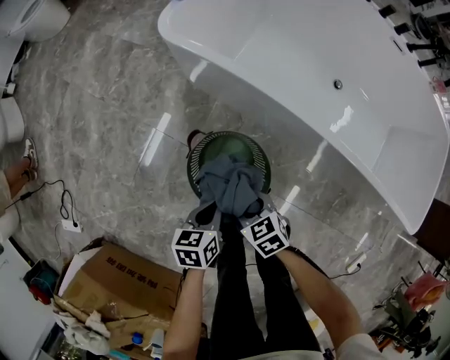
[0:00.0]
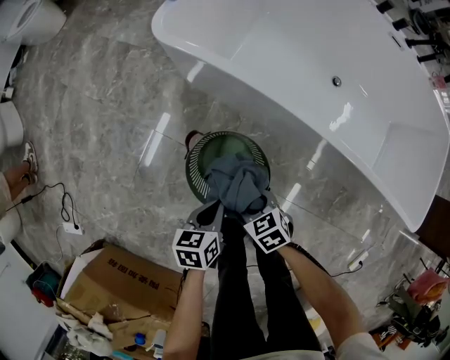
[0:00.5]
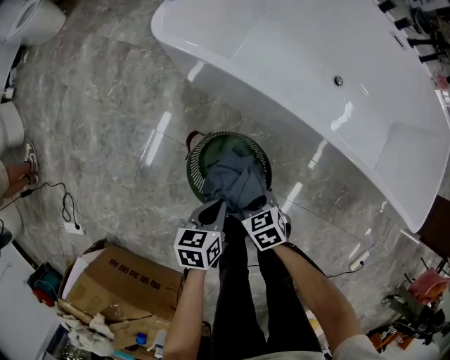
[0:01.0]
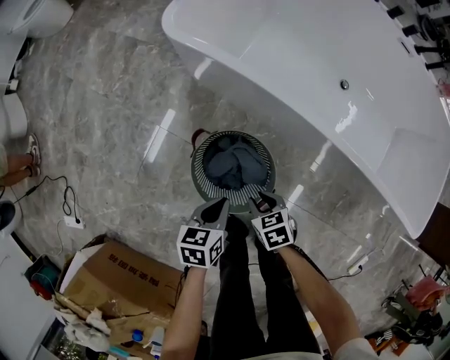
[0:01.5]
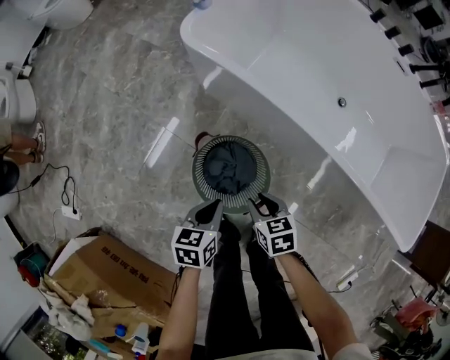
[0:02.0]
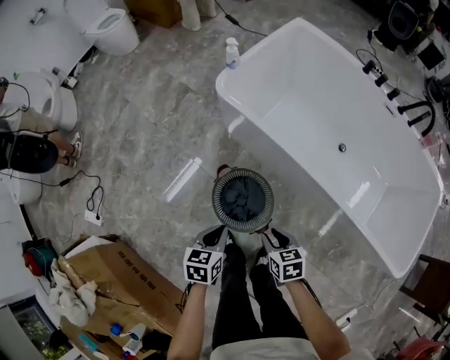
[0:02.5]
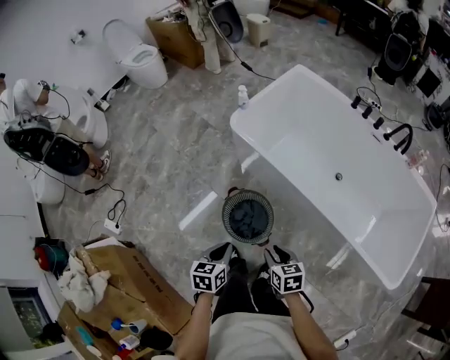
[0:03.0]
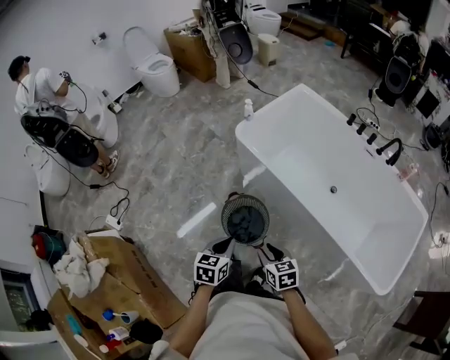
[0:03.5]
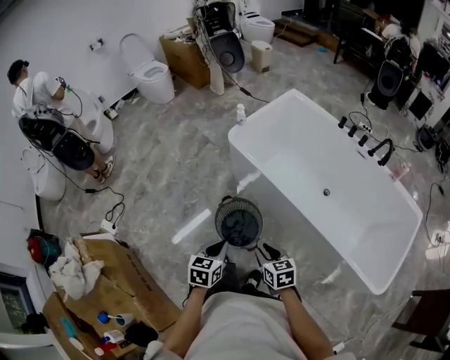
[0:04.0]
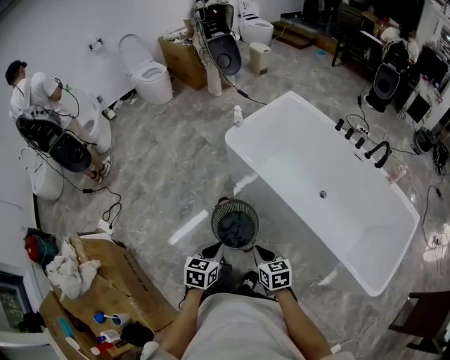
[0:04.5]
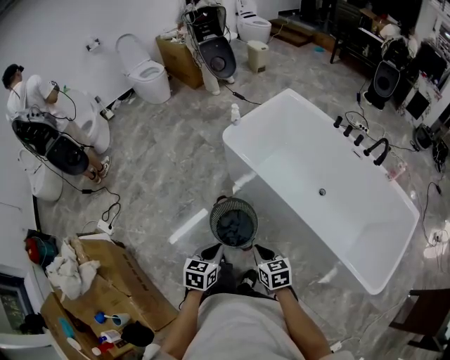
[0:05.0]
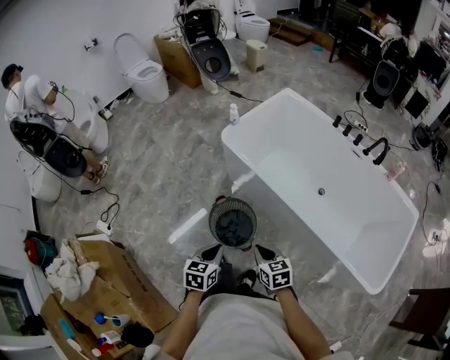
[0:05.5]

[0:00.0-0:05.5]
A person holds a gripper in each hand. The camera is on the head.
0:00.0 to 0:02.0: The right gripper heads to the right, covering roughly 5 cm.
0:02.0 to 0:03.5: Both grippers travel together upward and backward, some 35 cm. The right gripper turns by about 20 degrees.
0:03.5 to 0:05.5: The grippers move only a little.

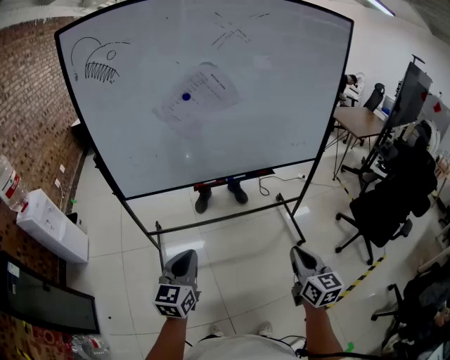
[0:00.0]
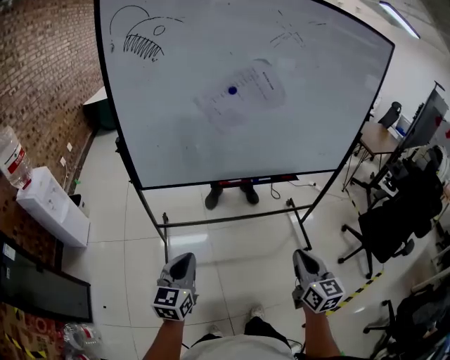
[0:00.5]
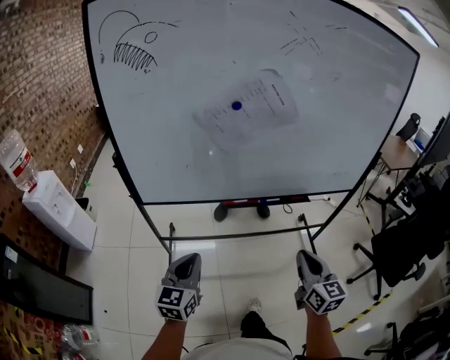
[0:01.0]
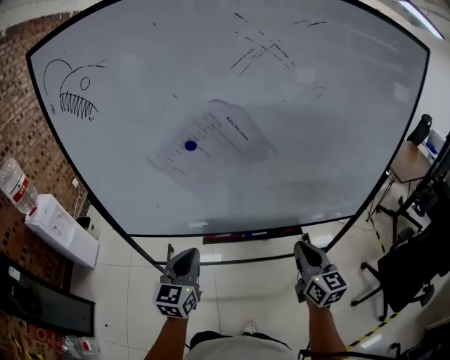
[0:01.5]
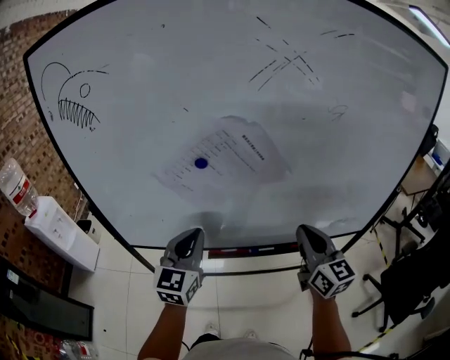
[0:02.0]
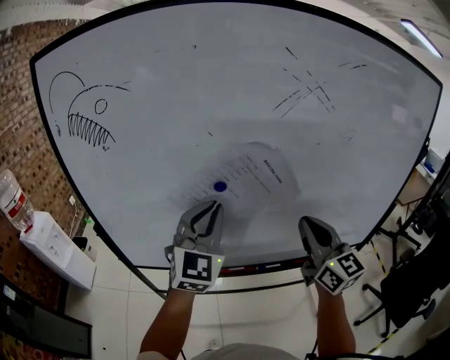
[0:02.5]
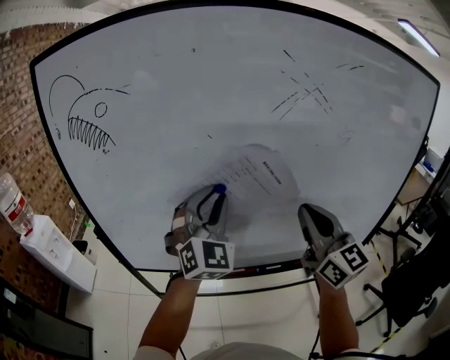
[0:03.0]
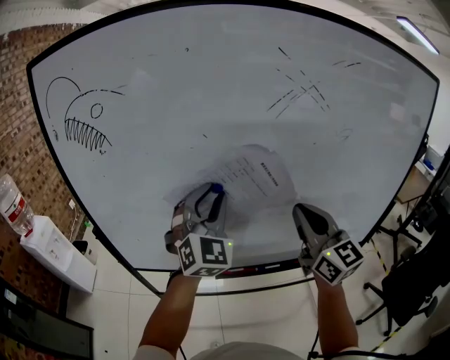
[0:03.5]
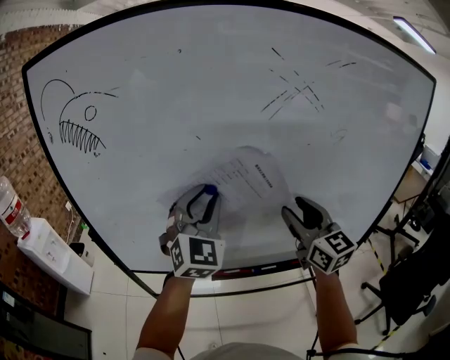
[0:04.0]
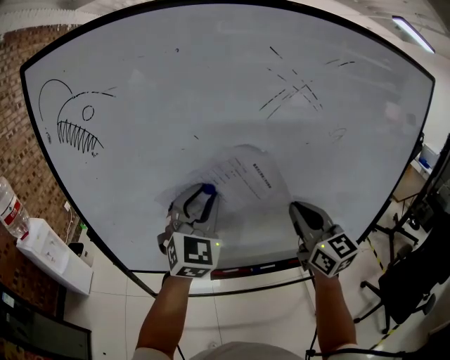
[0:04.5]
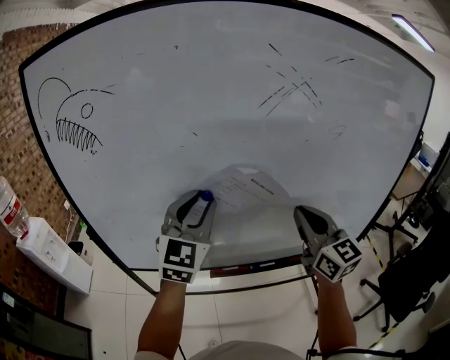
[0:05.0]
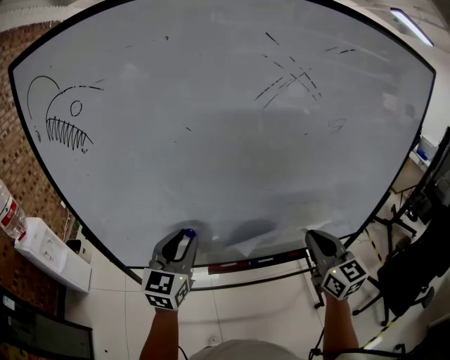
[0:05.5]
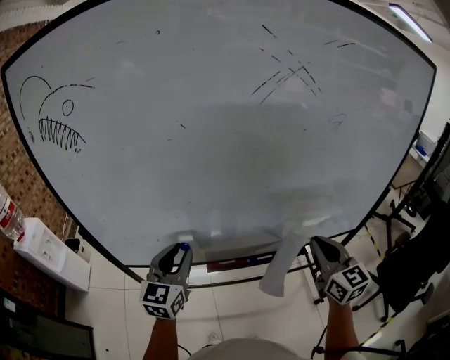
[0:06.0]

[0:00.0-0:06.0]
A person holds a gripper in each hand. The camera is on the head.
0:00.0 to 0:02.0: The grippers both shift forward by some 40 cm. The right gripper turns by some 20 degrees.
0:02.0 to 0:04.0: The two grippers go approximately 15 cm upward and forward. The left gripper rotates roughly 30 degrees, and opens its fingers. Meanwhile the right gripper opens up.
0:04.0 to 0:06.0: The left gripper heads downward and to the left, covering roughly 20 cm, and swivels approximately 40 degrees. The right gripper is displaced downward, backward and to the right by about 15 cm, and closes.

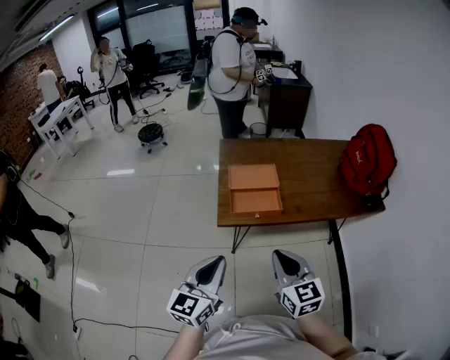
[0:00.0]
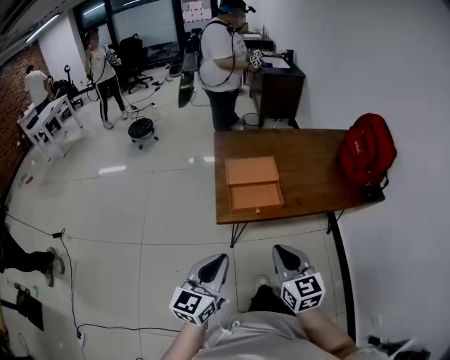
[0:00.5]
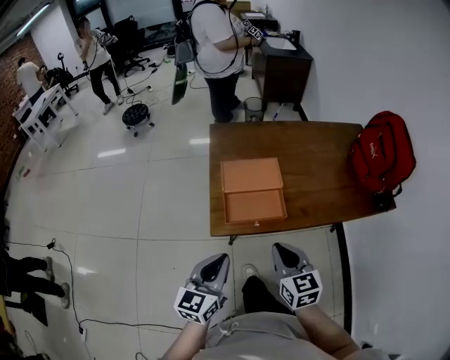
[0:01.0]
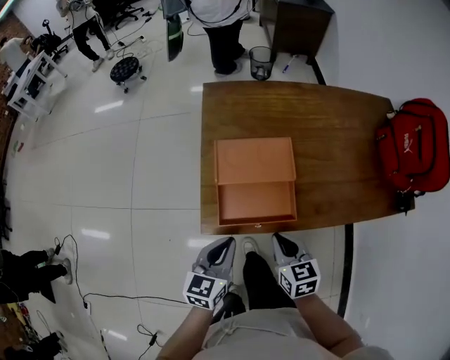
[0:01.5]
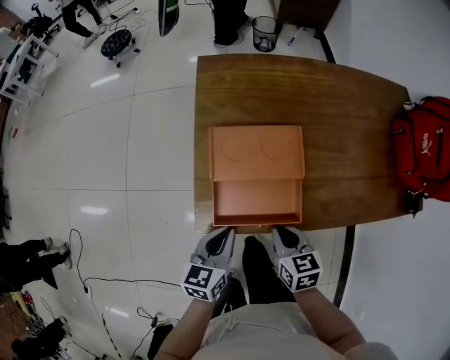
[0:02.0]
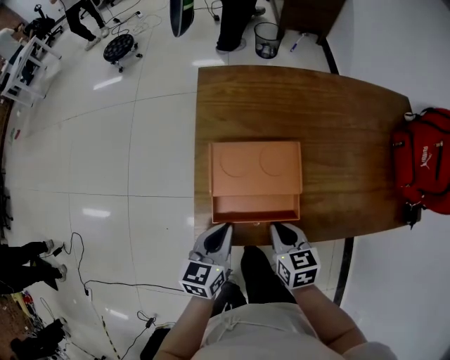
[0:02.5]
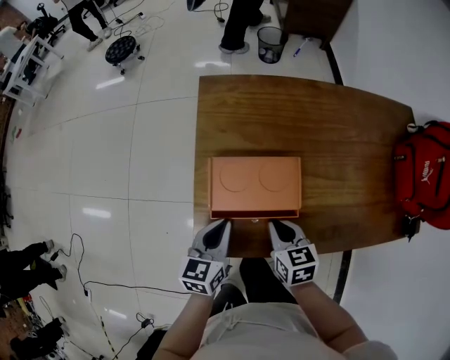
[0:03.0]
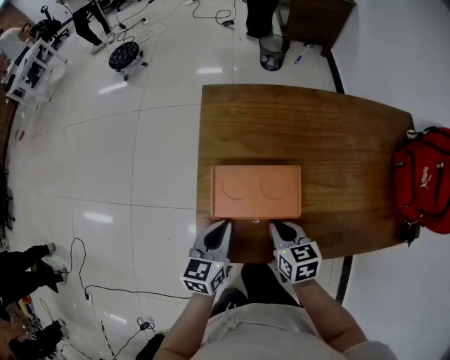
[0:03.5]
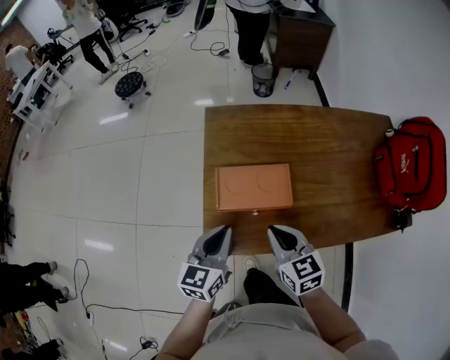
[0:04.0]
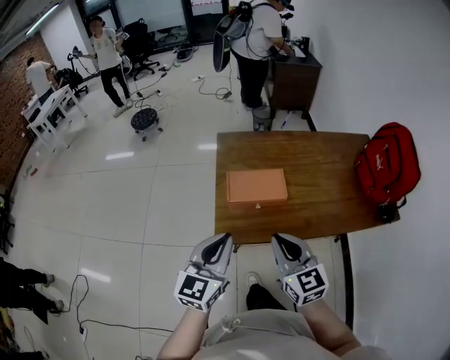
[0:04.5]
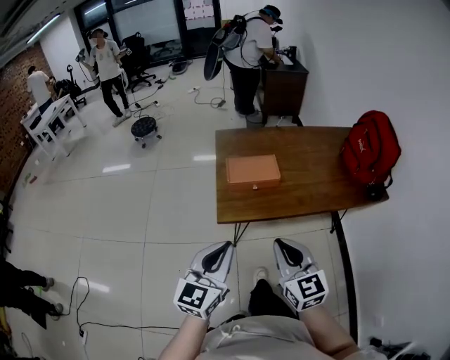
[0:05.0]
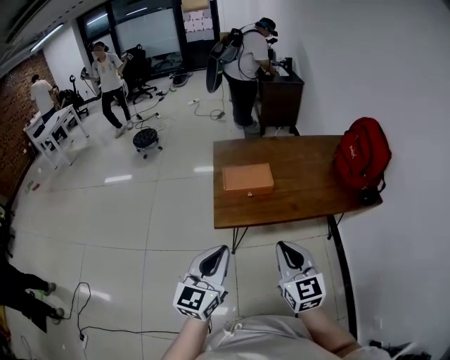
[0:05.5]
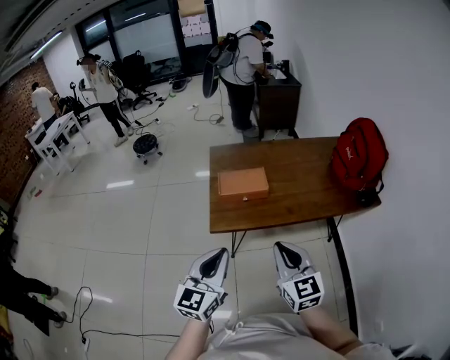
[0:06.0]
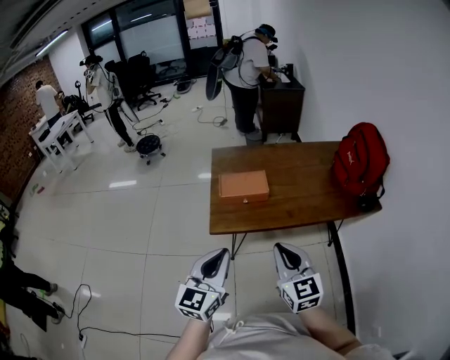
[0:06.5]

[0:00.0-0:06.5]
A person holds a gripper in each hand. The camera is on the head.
0:00.0 to 0:02.0: The left gripper goes about 35 cm forward and downward, and turns by some 30 degrees; the right gripper shifts about 35 cm downward and forward, and swivels approximately 30 degrees.
0:02.0 to 0:04.5: Both grippers move upward, about 25 cm. The left gripper rotates some 30 degrees. Meanwhile the right gripper turns by roughly 40 degrees.
0:04.5 to 0:06.5: The left gripper goes approximately 15 cm backward; the right gripper moves backward and to the right, about 15 cm.

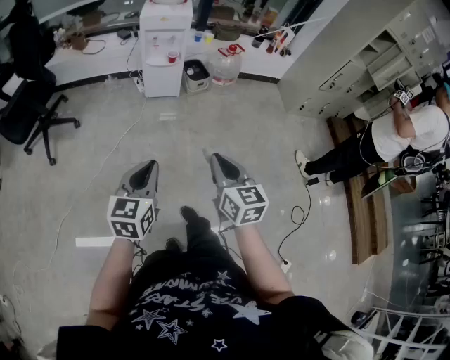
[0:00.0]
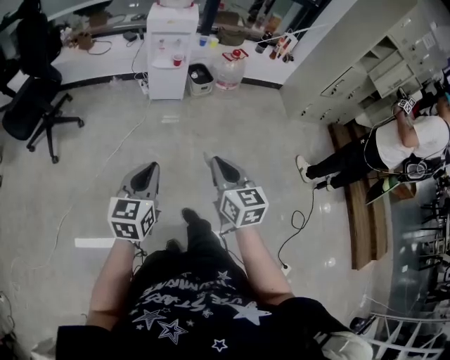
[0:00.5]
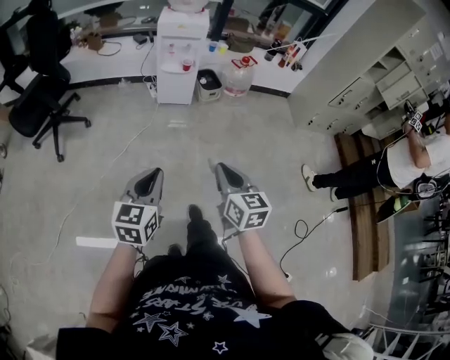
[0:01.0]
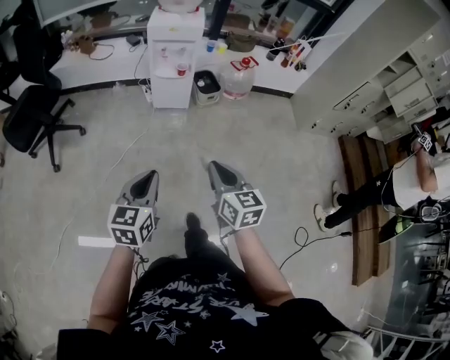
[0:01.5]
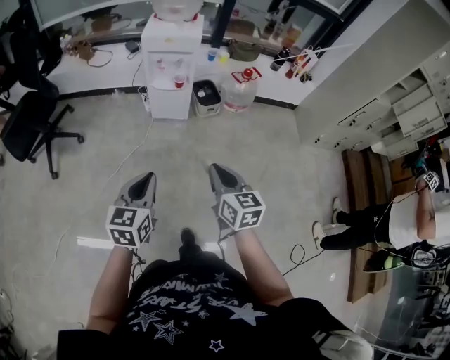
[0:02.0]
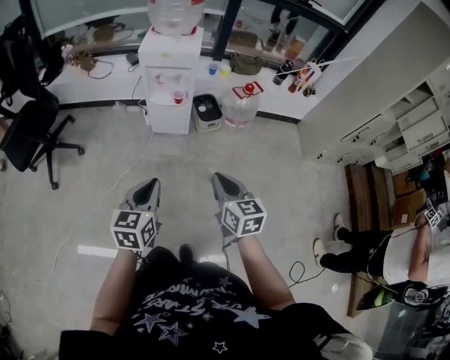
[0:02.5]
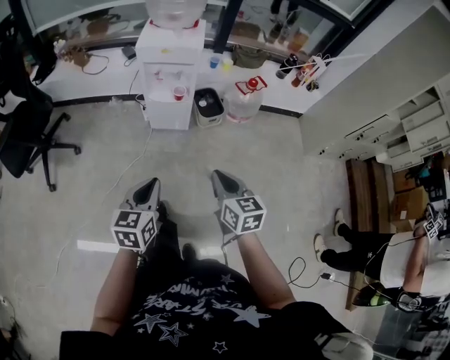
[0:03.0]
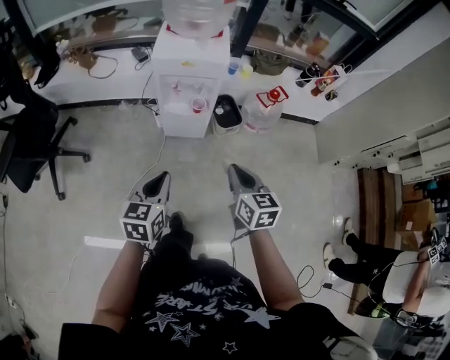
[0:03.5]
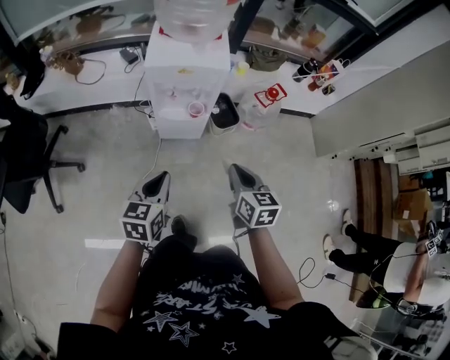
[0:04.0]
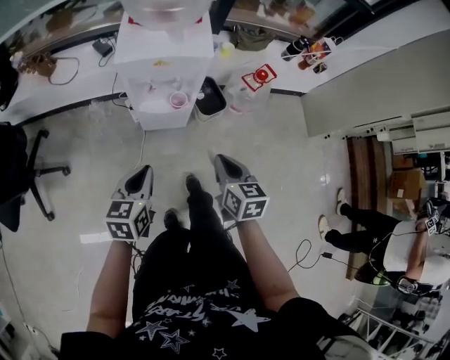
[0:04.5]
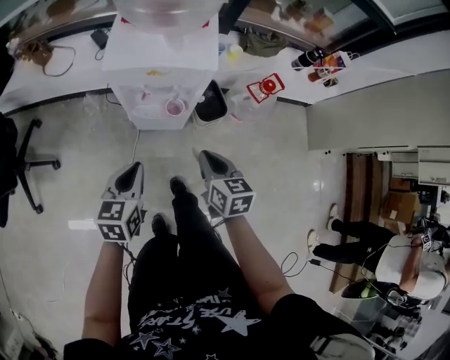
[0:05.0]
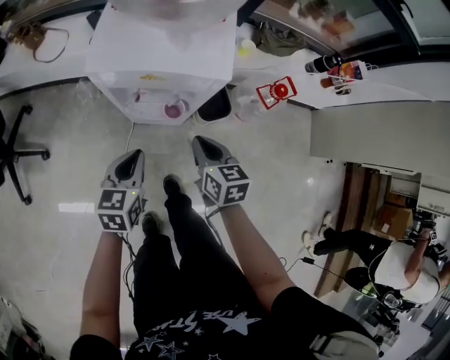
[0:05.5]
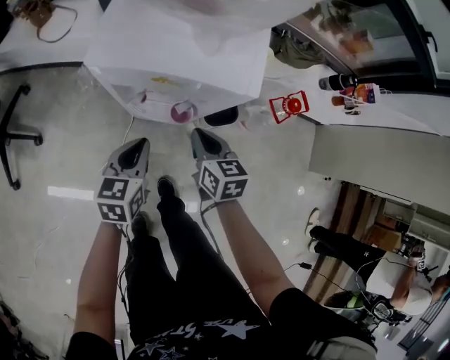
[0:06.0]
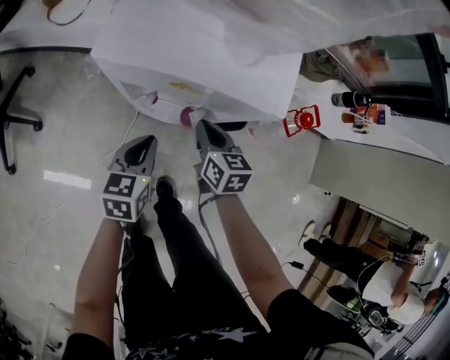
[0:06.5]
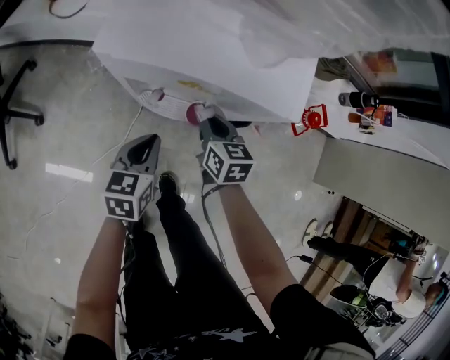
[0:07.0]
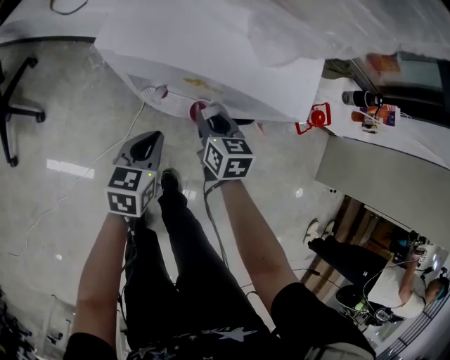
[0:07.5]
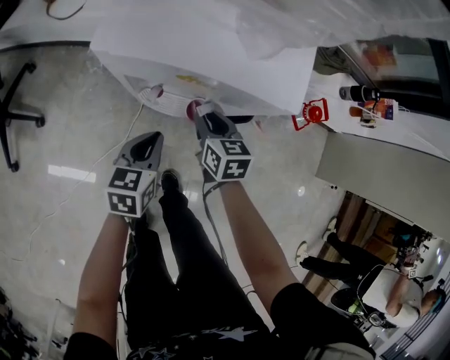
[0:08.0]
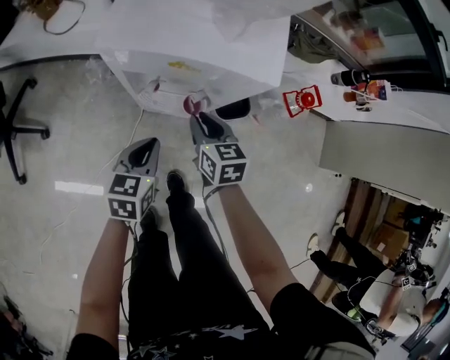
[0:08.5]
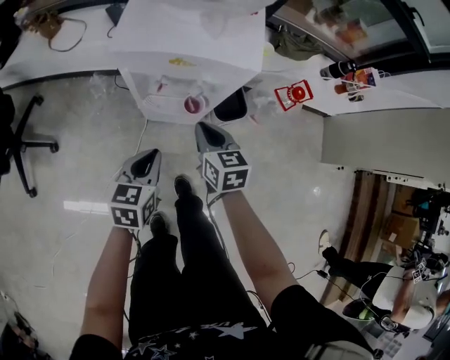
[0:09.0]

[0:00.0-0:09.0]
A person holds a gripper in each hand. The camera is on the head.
0:00.0 to 0:02.0: Both grippers move forward, some 25 cm.
0:02.0 to 0:04.5: The grippers both shift forward by approximately 40 cm.
0:04.5 to 0:07.0: Both grippers travel together forward and downward, about 35 cm.
0:07.0 to 0:09.0: Both grippers move backward and upward, approximately 15 cm.
